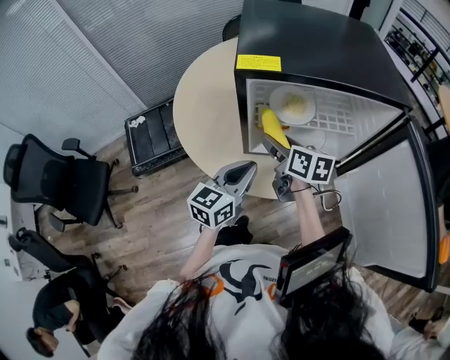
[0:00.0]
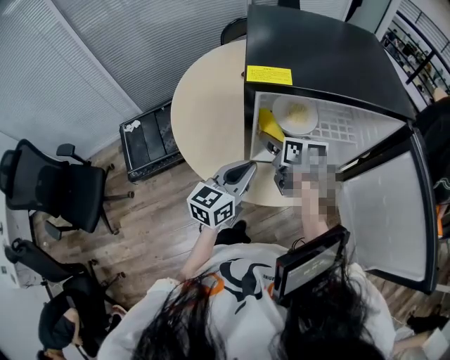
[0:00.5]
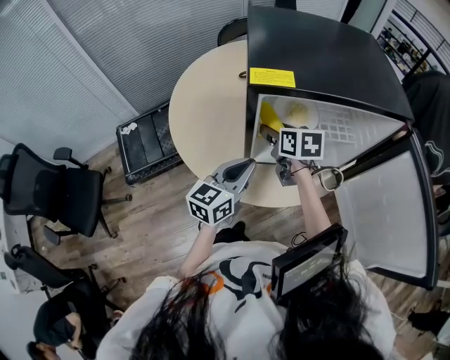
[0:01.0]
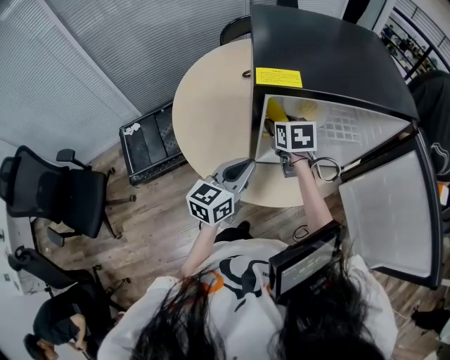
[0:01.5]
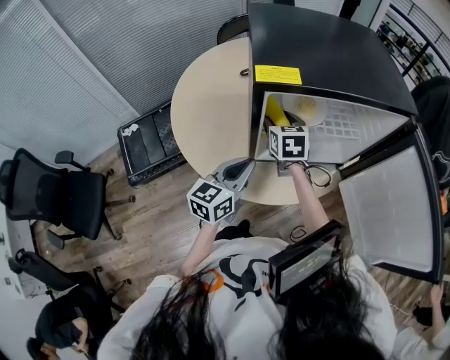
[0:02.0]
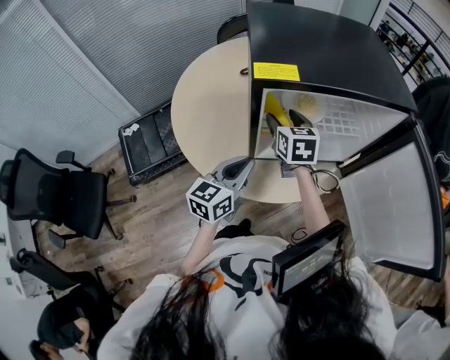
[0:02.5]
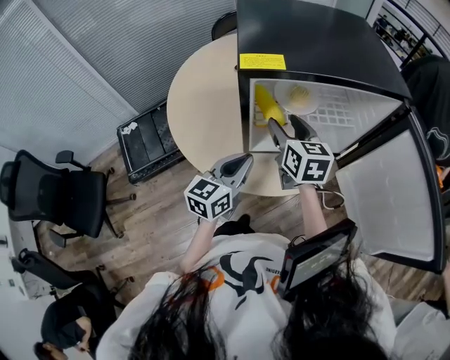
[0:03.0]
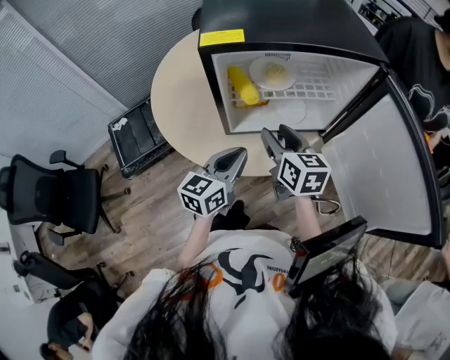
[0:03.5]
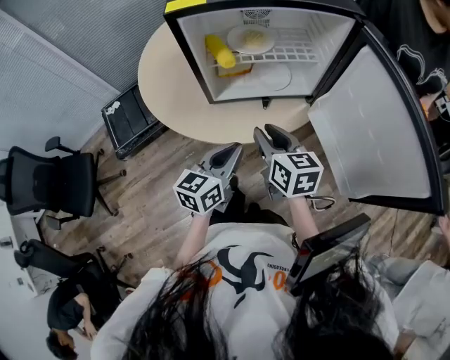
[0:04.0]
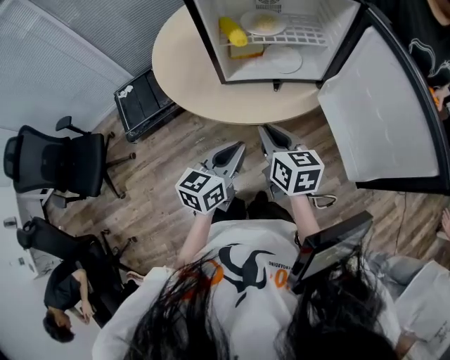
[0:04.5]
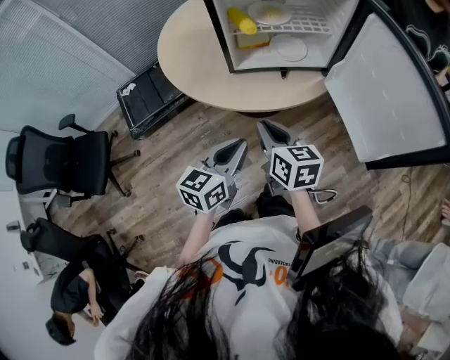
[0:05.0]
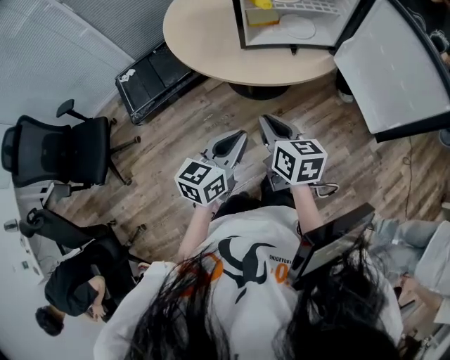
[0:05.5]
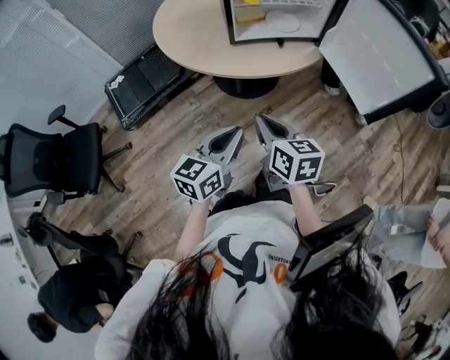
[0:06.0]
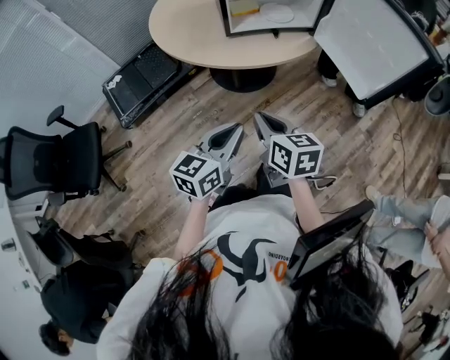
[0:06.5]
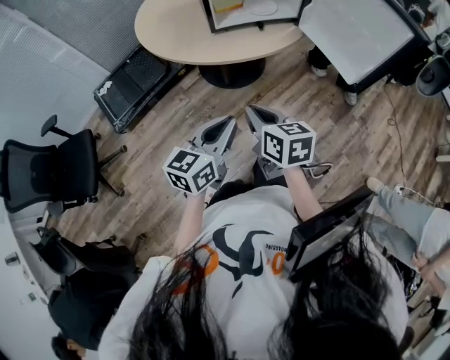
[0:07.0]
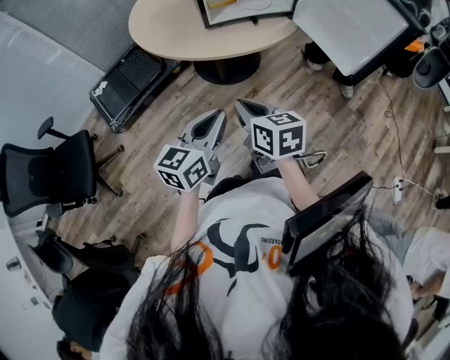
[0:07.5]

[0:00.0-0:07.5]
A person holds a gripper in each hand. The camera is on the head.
0:00.0 to 0:02.0: The right gripper shifts approximately 10 cm forward, and swivels approximately 30 degrees. The left gripper ends up some 5 cm from where it was.
0:02.0 to 0:04.0: The left gripper goes some 20 cm backward and to the right, while the right gripper shifts about 30 cm backward and to the right, swivels some 20 degrees, and closes.
0:04.0 to 0:05.5: The two grippers go approximately 20 cm backward and to the left.
0:05.5 to 0:07.5: Both grippers move backward, roughly 10 cm.

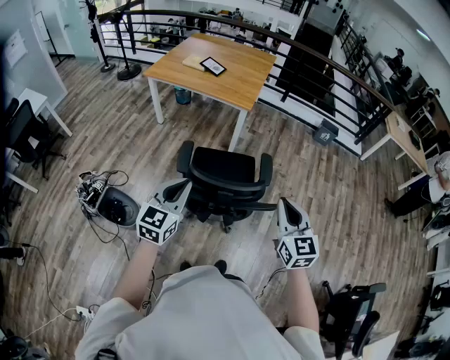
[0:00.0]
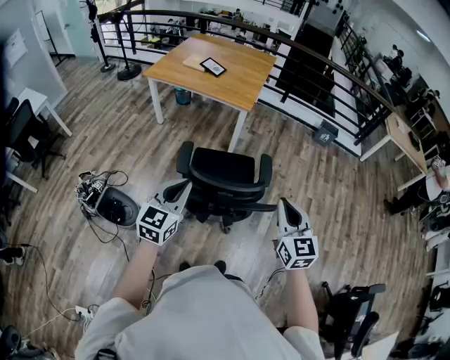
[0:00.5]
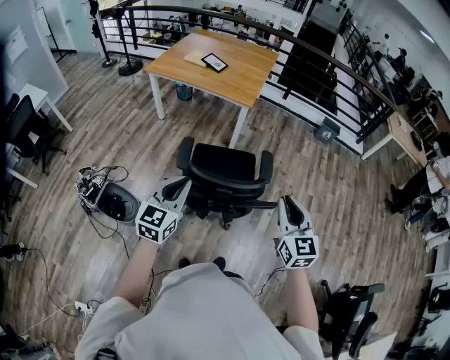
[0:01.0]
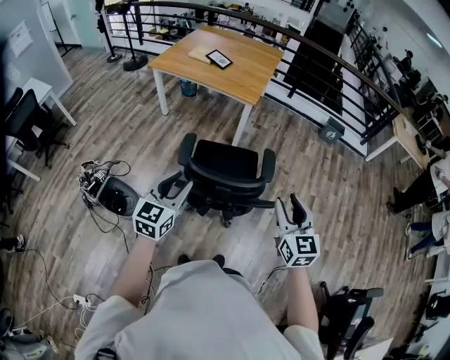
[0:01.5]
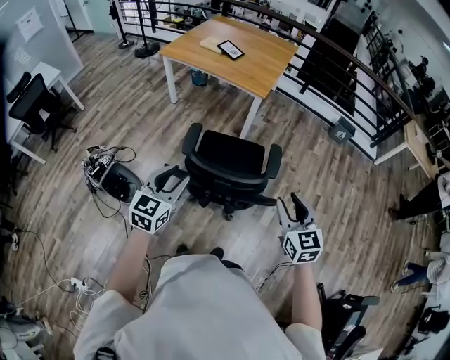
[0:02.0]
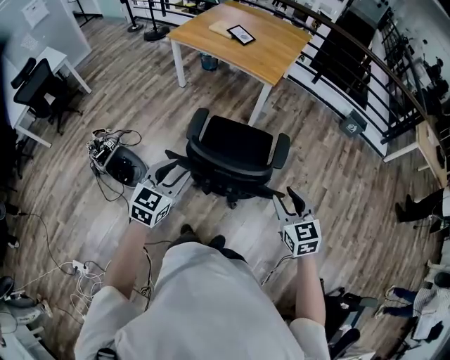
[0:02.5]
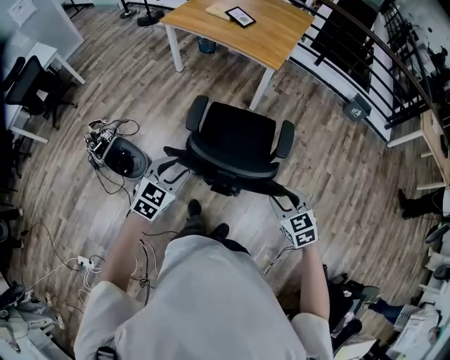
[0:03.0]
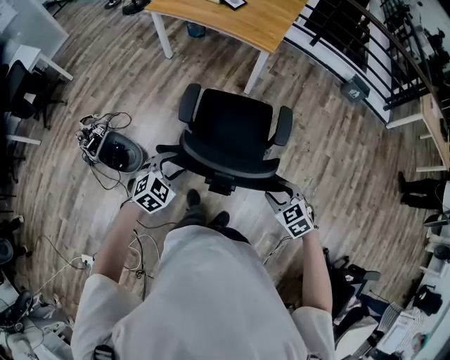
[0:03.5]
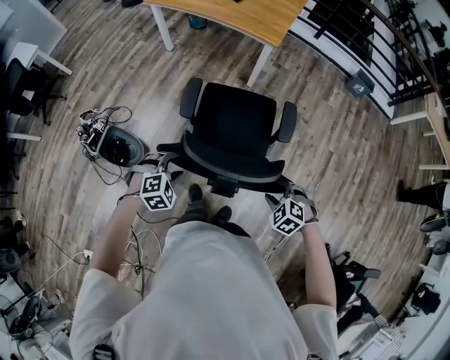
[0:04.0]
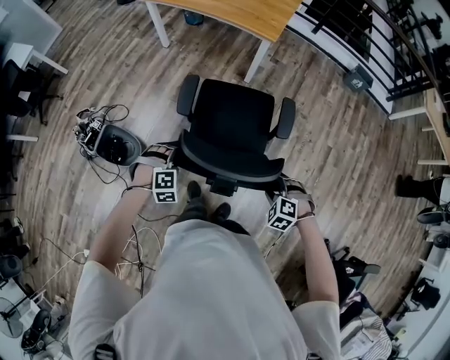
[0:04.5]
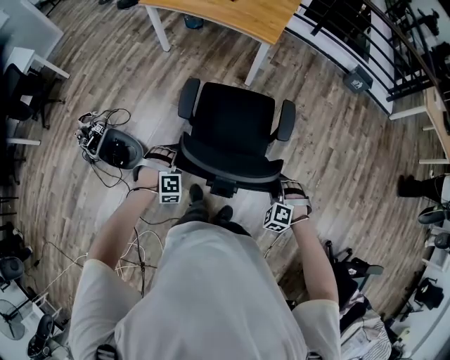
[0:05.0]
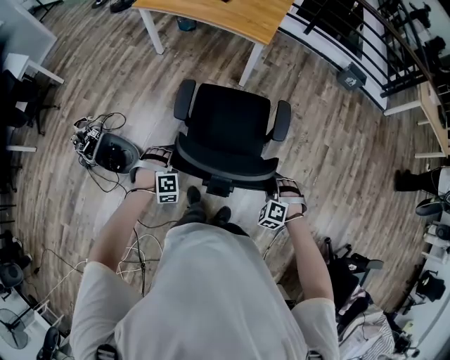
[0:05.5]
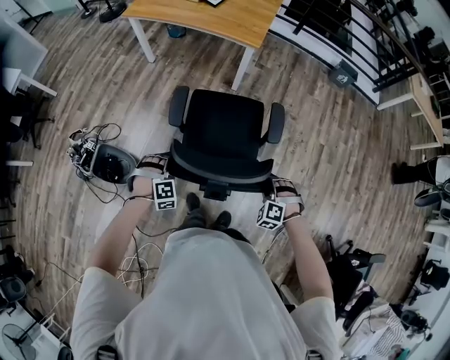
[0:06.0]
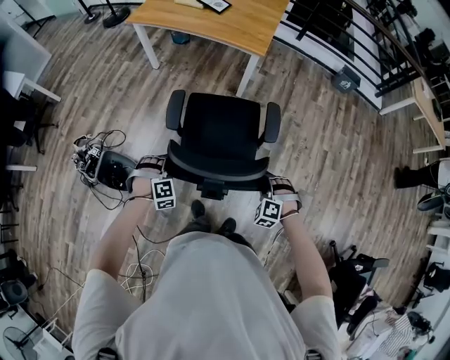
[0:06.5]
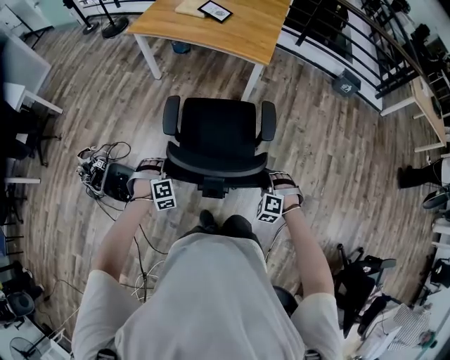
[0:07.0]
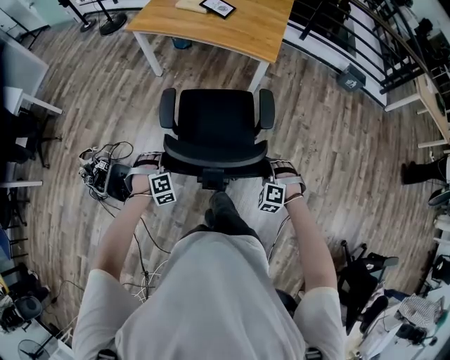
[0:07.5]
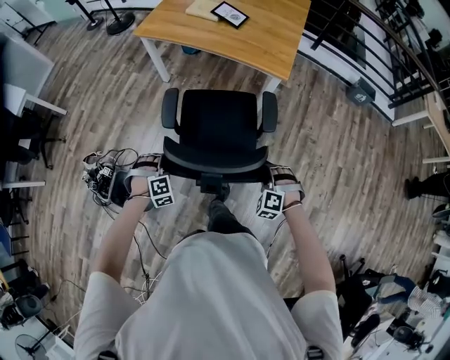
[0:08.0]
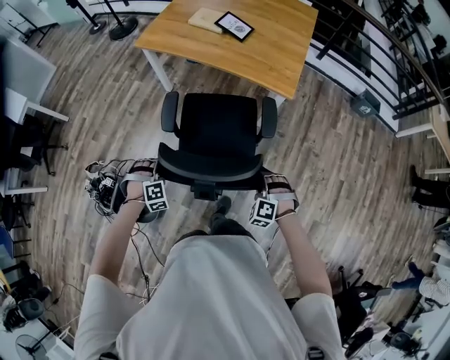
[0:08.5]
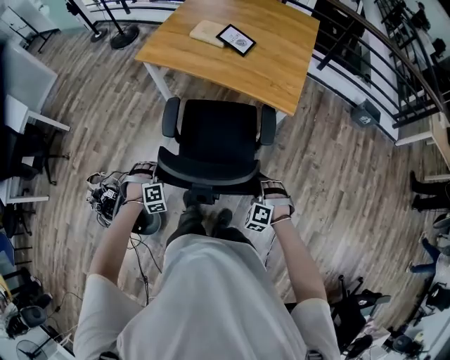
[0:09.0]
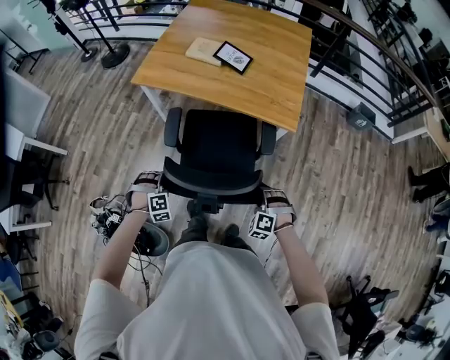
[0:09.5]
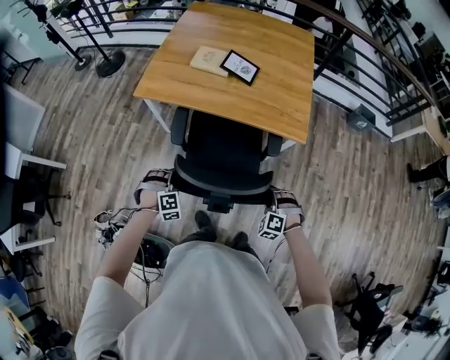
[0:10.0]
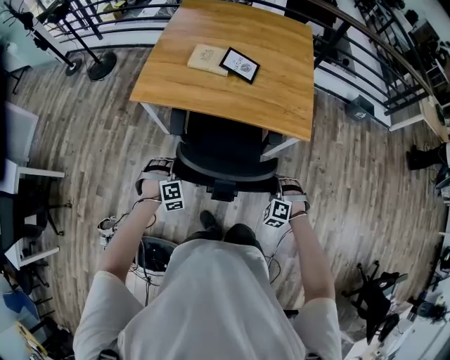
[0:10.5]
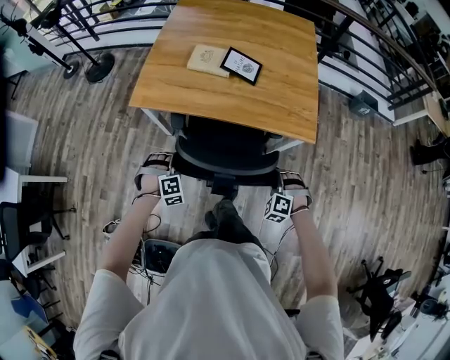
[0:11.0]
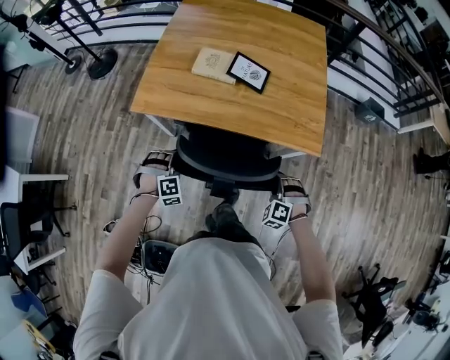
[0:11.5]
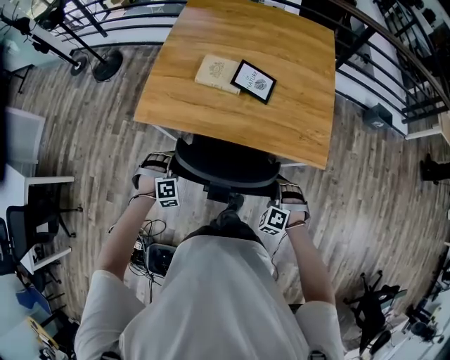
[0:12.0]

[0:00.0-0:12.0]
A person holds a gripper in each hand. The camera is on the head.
0:00.0 to 0:02.0: The right gripper moves downward, some 5 cm, and opens up, while the left gripper opens its fingers.
0:02.0 to 0:04.0: Both grippers move downward, approximately 25 cm. The left gripper points its fingers about 40 degrees further downward; the right gripper angles its fingers downward, by approximately 50 degrees.
0:04.0 to 0:06.0: The right gripper ends up about 5 cm from where it was, turns by about 30 degrees, and closes; the left gripper shifts about 5 cm downward, rotates about 30 degrees, and closes up.
0:06.0 to 0:08.0: The two grippers go about 30 cm forward and to the left.
0:08.0 to 0:10.0: Both grippers move forward, about 30 cm.
0:10.0 to 0:12.0: The grippers both shift forward by some 25 cm.

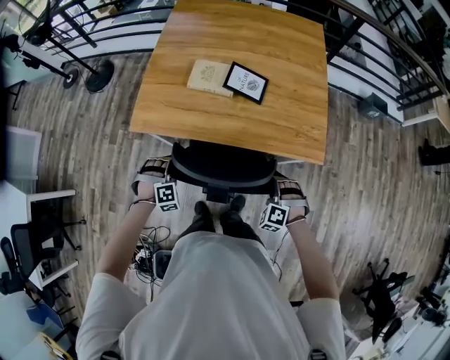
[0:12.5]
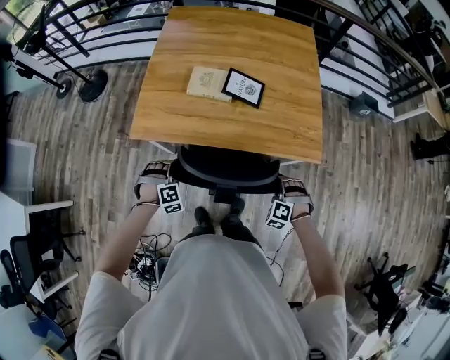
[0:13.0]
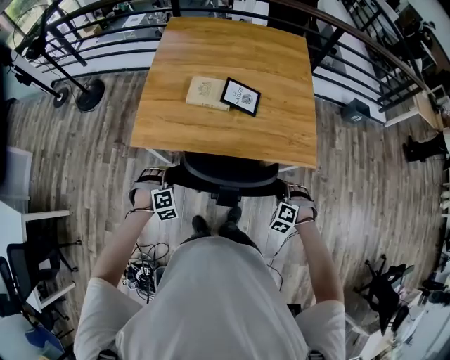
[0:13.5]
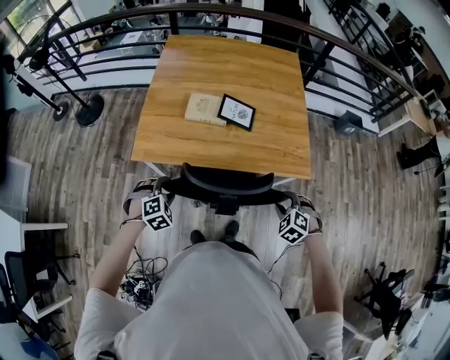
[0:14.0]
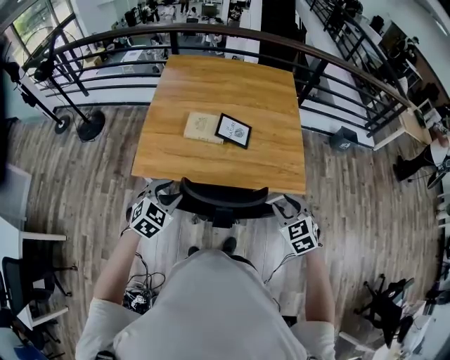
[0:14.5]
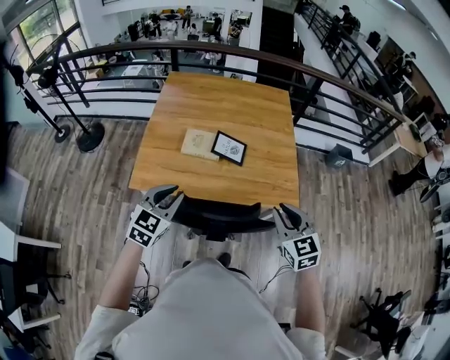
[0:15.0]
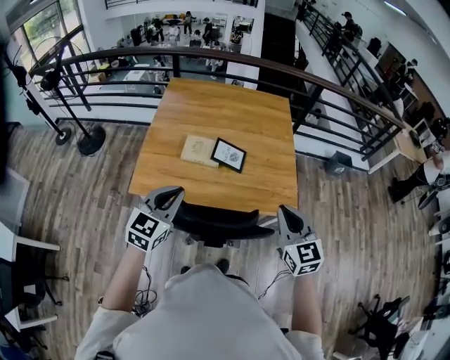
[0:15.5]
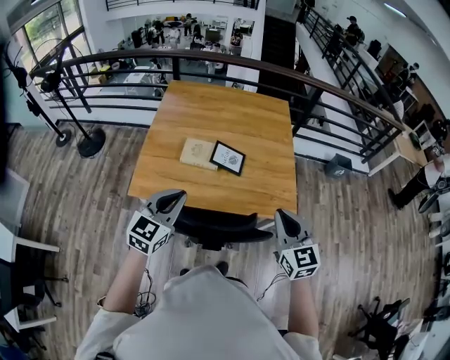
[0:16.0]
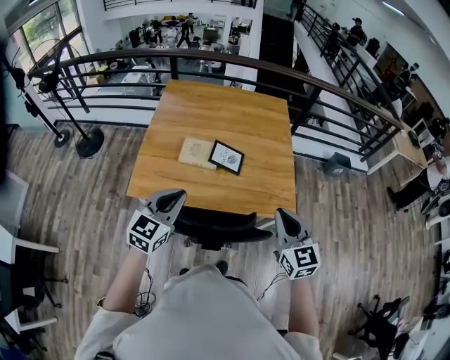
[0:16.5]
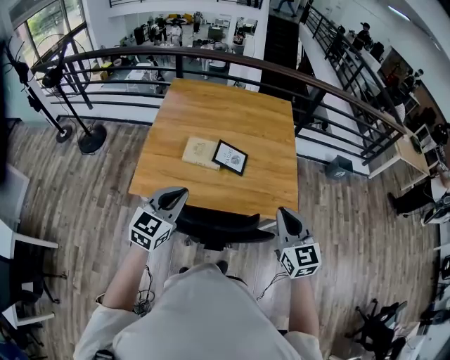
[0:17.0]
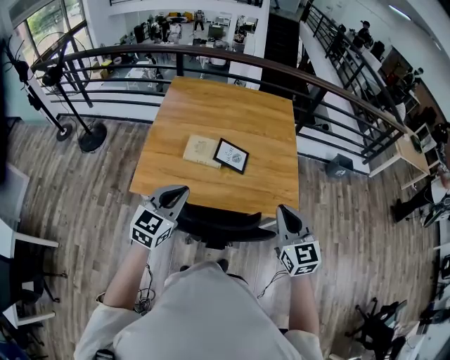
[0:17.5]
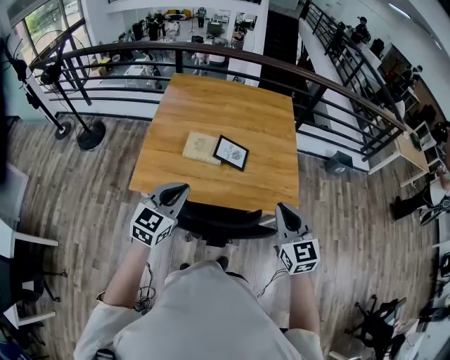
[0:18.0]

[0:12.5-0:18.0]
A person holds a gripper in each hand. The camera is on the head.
0:12.5 to 0:14.5: The grippers both shift upward by some 20 cm. The right gripper rolls clockwise, seen from behind, by about 50 degrees. The left gripper swivels some 50 degrees.
0:14.5 to 0:16.0: The grippers both shift upward by some 15 cm. The right gripper changes its angle by about 30 degrees, and closes its fingers, while the left gripper changes its angle by some 30 degrees, and closes.
0:16.0 to 0:18.0: There are only small adjustments of the grippers.

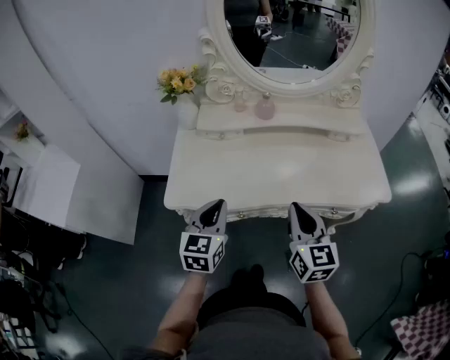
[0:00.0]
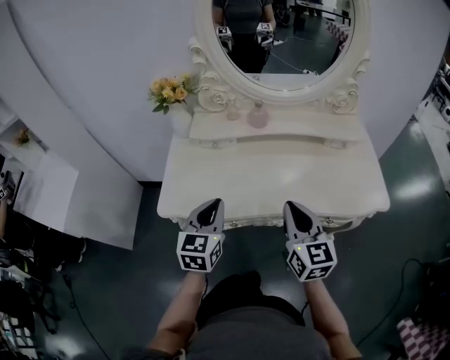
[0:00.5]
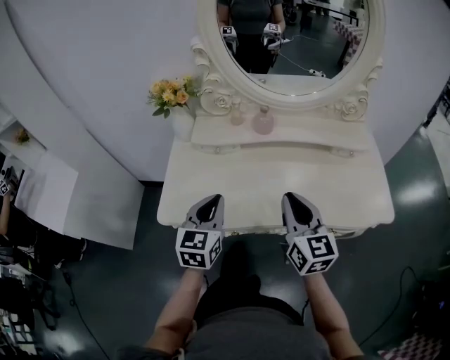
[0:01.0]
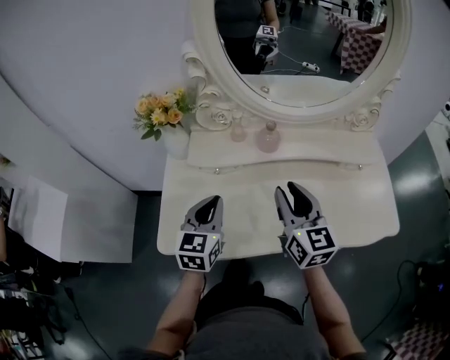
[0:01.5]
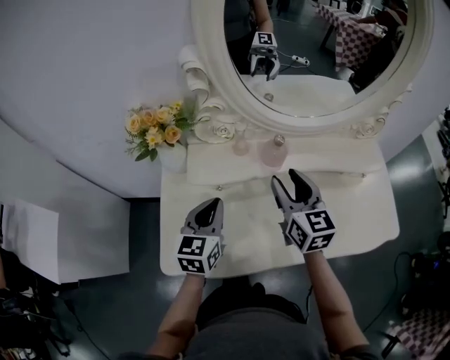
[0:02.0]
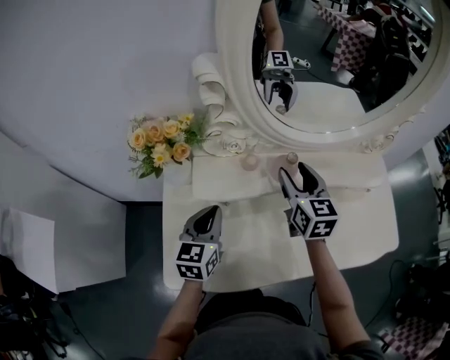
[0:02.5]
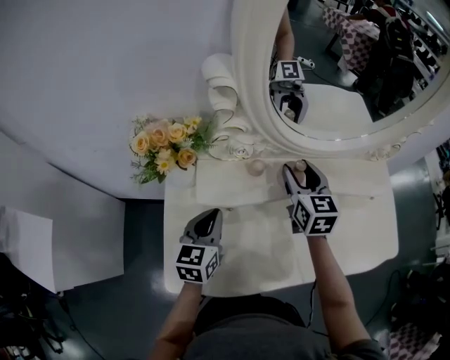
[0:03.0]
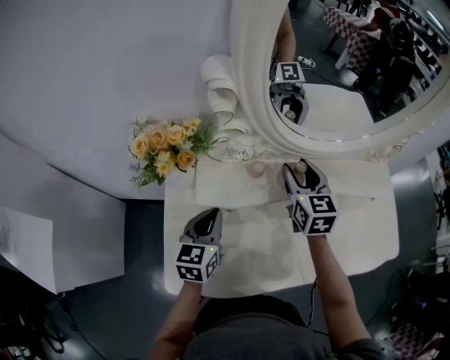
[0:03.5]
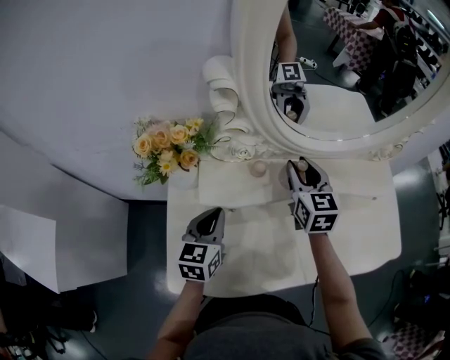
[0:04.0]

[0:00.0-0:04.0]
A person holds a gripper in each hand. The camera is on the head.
0:00.0 to 0:02.0: Both grippers move forward, approximately 25 cm. The right gripper opens.
0:02.0 to 0:04.0: The right gripper is displaced forward by about 10 cm, while the left gripper changes place by approximately 5 cm.
